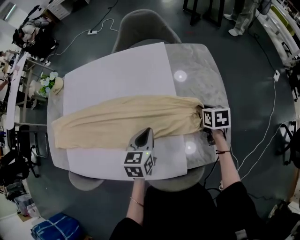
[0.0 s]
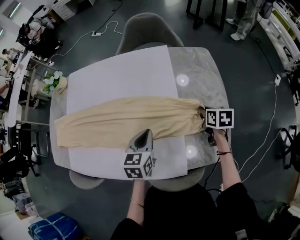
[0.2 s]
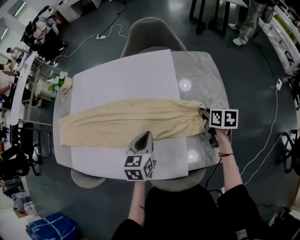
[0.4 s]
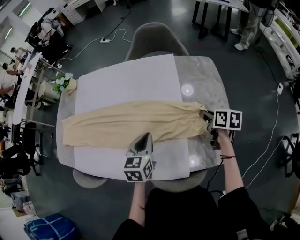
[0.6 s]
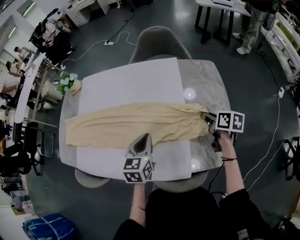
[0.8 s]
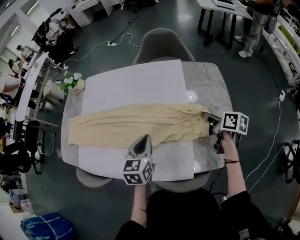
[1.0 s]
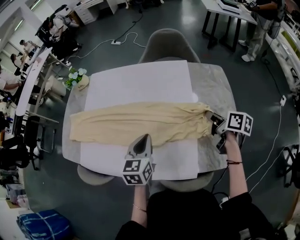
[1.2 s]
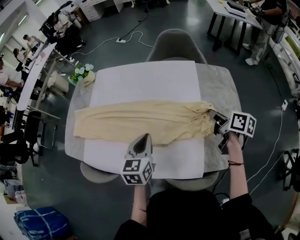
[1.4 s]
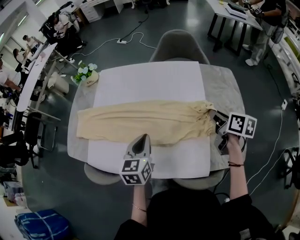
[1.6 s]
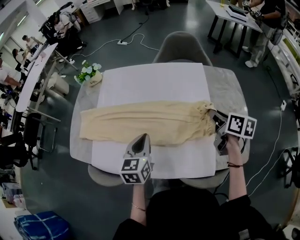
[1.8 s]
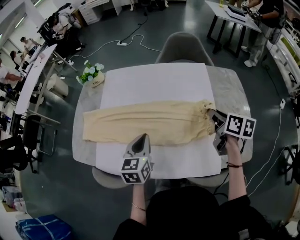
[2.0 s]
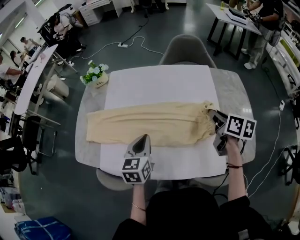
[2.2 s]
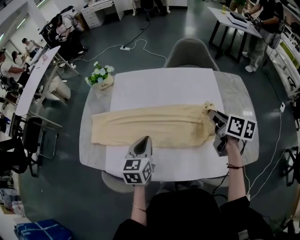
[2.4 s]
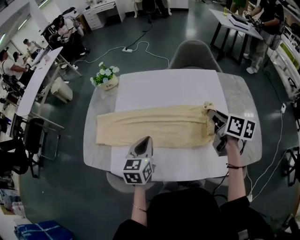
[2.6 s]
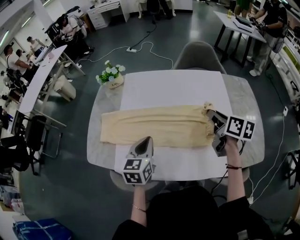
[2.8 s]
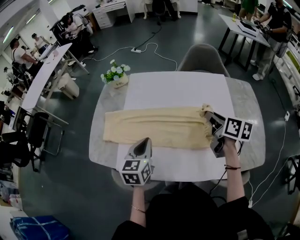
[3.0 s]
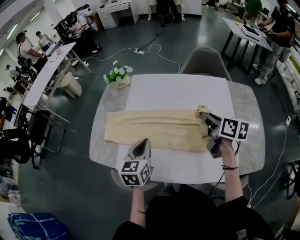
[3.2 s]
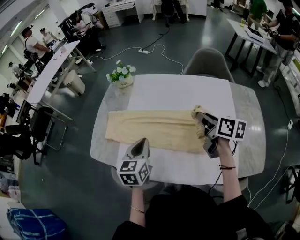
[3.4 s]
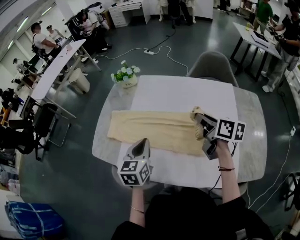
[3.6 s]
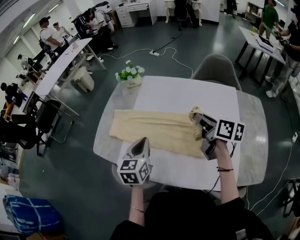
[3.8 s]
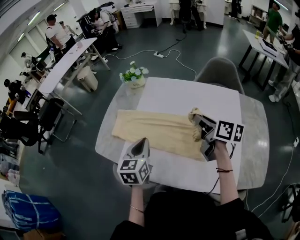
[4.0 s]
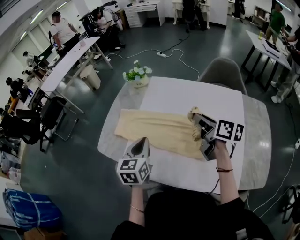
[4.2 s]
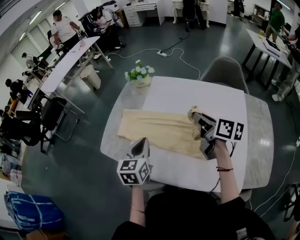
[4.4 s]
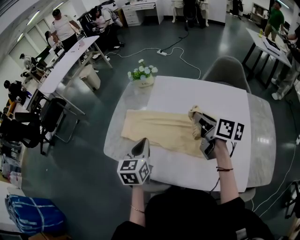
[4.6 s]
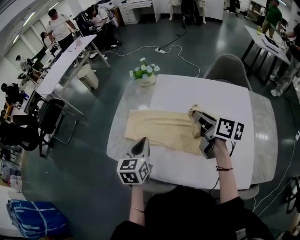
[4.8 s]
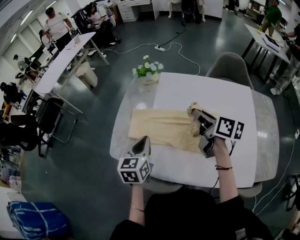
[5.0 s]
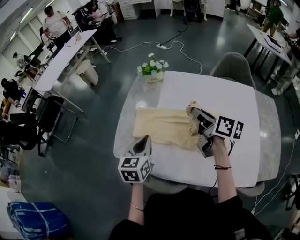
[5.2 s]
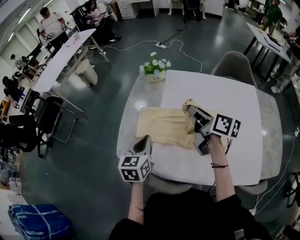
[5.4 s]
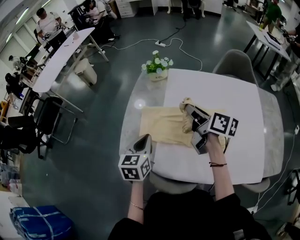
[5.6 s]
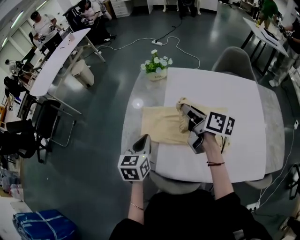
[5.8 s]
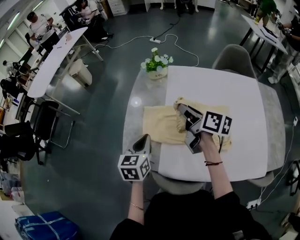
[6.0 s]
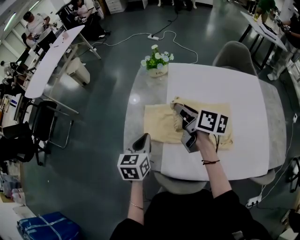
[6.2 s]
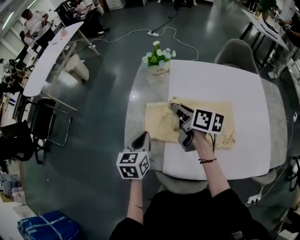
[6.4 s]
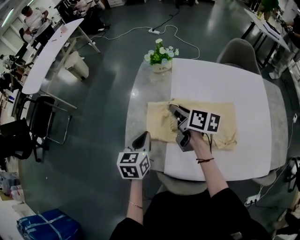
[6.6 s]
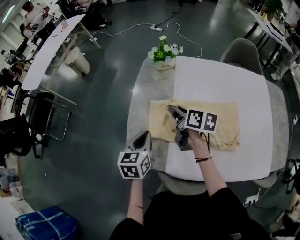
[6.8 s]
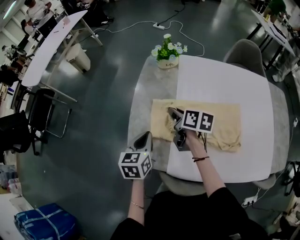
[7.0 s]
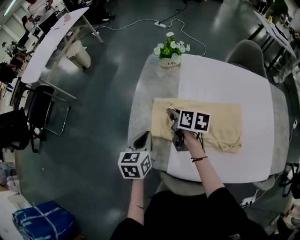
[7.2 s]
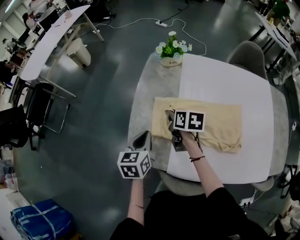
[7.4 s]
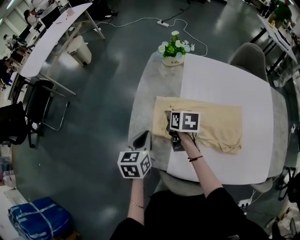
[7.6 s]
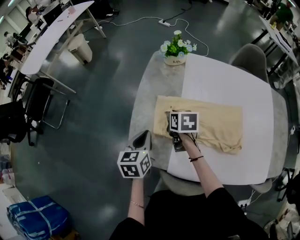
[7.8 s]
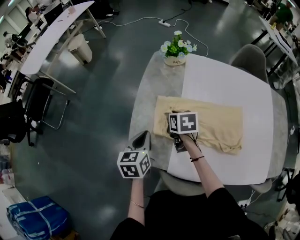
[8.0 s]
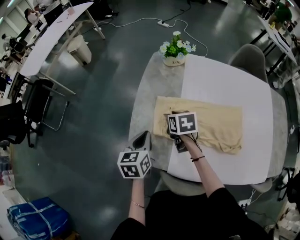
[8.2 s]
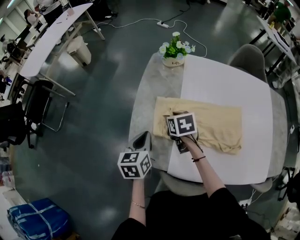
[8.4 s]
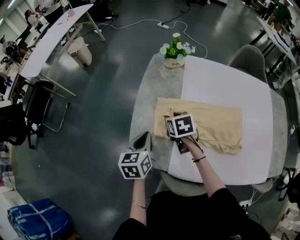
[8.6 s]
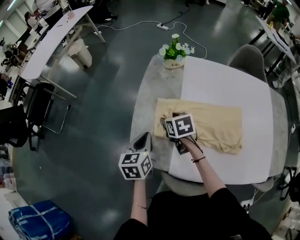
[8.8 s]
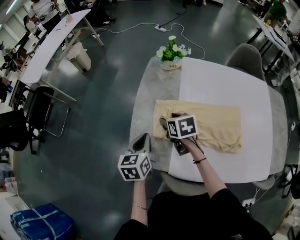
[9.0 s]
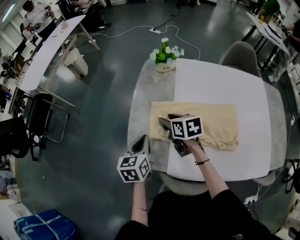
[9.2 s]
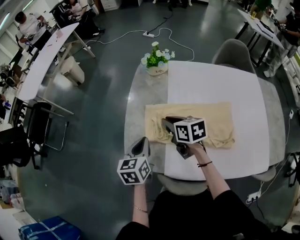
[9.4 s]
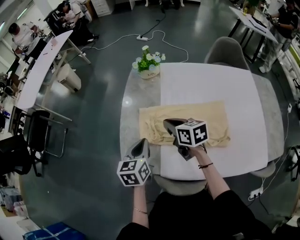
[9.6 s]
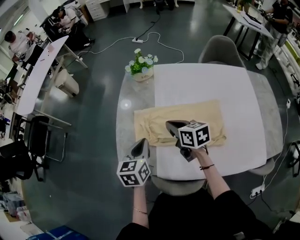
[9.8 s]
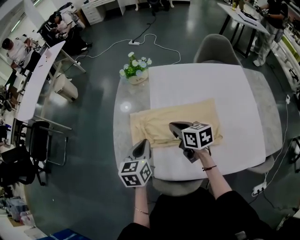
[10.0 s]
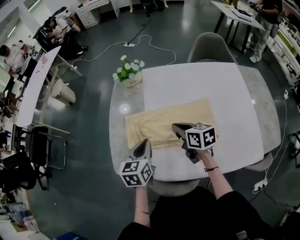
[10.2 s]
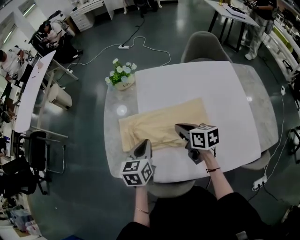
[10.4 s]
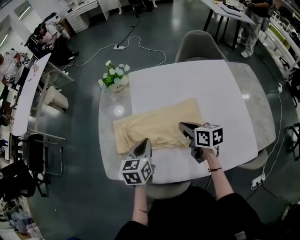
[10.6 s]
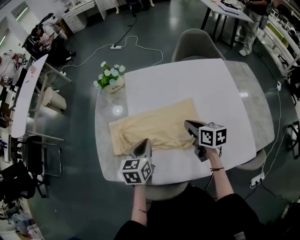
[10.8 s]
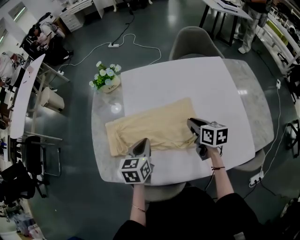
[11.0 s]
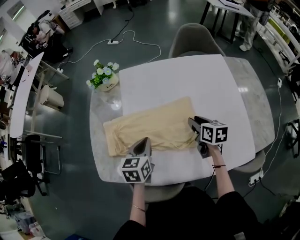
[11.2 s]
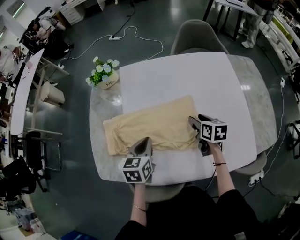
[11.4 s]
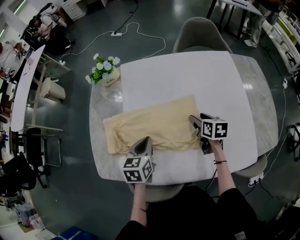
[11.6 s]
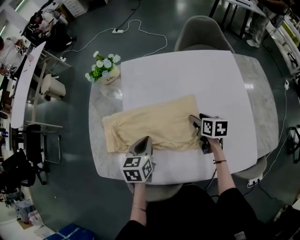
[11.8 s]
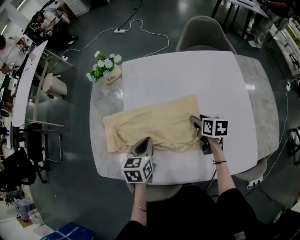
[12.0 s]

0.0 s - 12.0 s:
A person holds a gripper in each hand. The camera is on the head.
0.0 s - 1.6 s: The left gripper heads to the left and upward, covering about 20 cm. Meanwhile the right gripper heads upward and to the left, covering about 20 cm, and rotates some 30 degrees.
1.6 s - 3.0 s: The grippers both shift to the left by approximately 20 cm.
3.0 s - 4.4 s: The right gripper travels to the left and forward by some 15 cm. Meanwhile the left gripper moves to the left, approximately 5 cm.
4.4 s - 6.0 s: The grippers both shift to the left and forward by some 25 cm.
6.0 s - 7.6 s: The right gripper moves downward and to the left, about 20 cm, and points its fingers about 30 degrees further downward. Meanwhile the left gripper goes roughly 10 cm downward and to the left.
7.6 s - 9.0 s: The right gripper opens up.
9.0 s - 10.4 s: The right gripper shifts some 25 cm to the right and backward, turns by about 20 degrees, and closes its fingers. Meanwhile the left gripper heads to the right, covering approximately 20 cm.
10.4 s - 12.0 s: The left gripper moves to the right and downward, approximately 10 cm; the right gripper moves to the right and downward, approximately 20 cm, rotates some 20 degrees, and opens up.

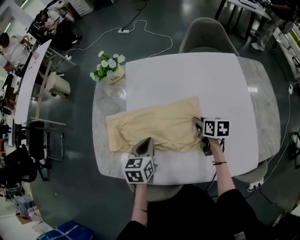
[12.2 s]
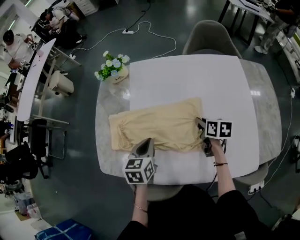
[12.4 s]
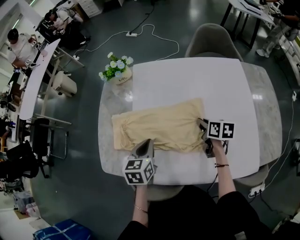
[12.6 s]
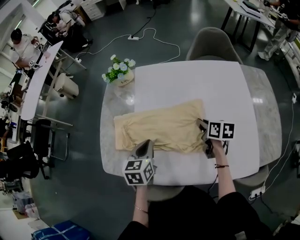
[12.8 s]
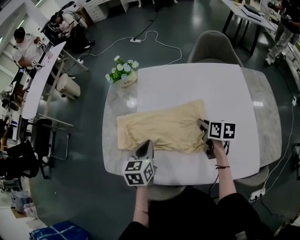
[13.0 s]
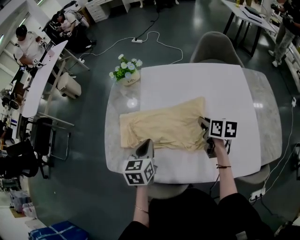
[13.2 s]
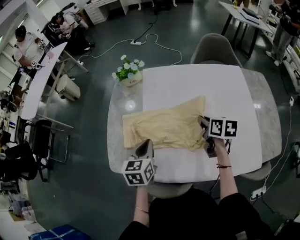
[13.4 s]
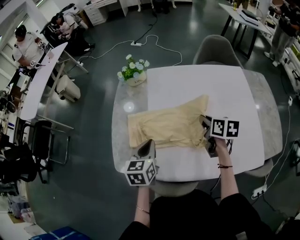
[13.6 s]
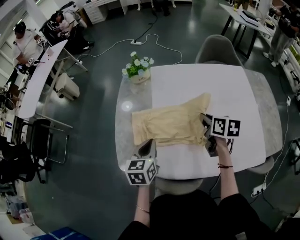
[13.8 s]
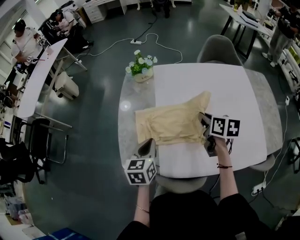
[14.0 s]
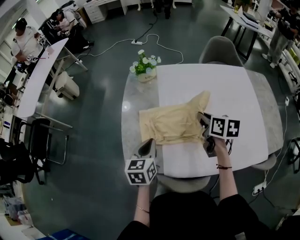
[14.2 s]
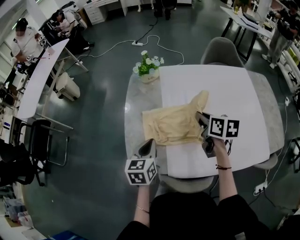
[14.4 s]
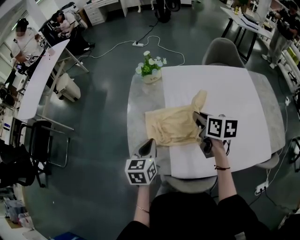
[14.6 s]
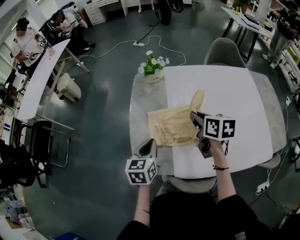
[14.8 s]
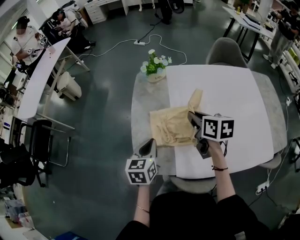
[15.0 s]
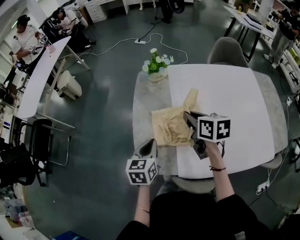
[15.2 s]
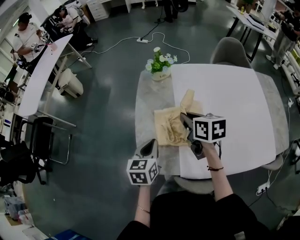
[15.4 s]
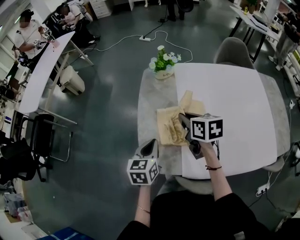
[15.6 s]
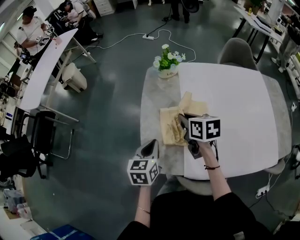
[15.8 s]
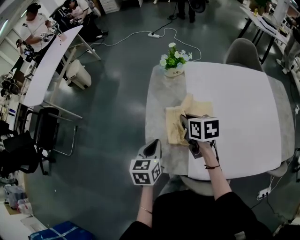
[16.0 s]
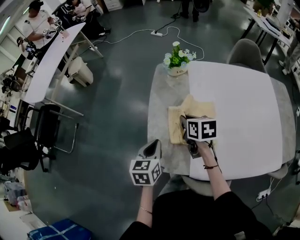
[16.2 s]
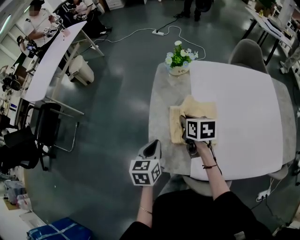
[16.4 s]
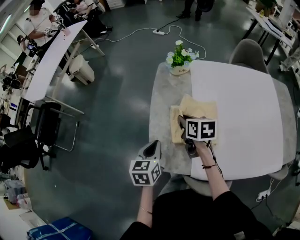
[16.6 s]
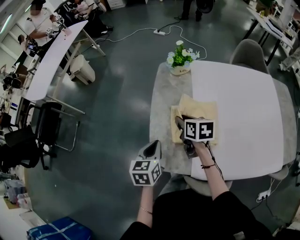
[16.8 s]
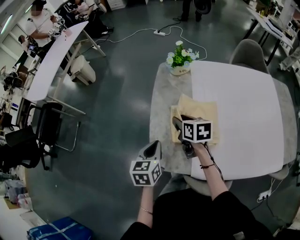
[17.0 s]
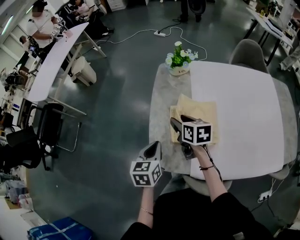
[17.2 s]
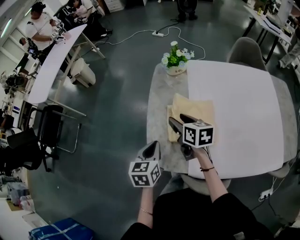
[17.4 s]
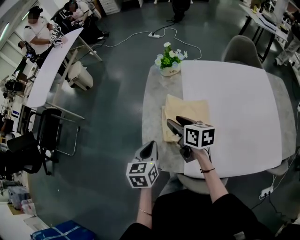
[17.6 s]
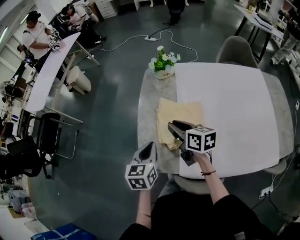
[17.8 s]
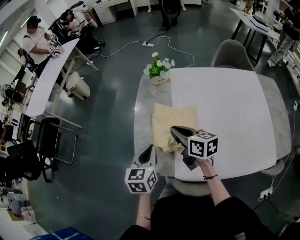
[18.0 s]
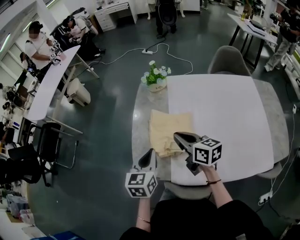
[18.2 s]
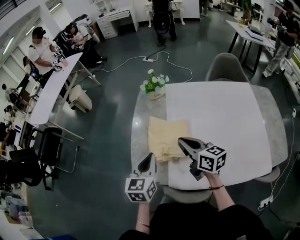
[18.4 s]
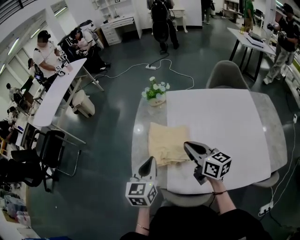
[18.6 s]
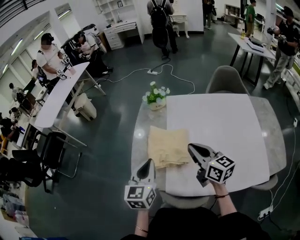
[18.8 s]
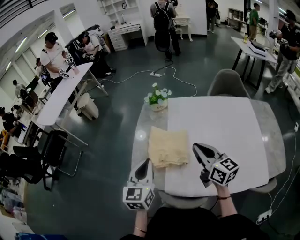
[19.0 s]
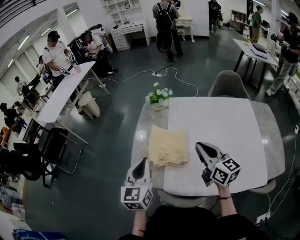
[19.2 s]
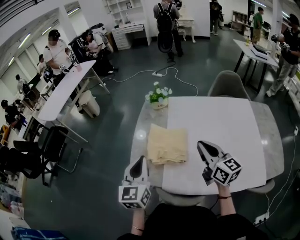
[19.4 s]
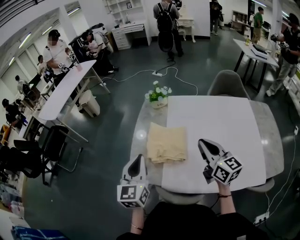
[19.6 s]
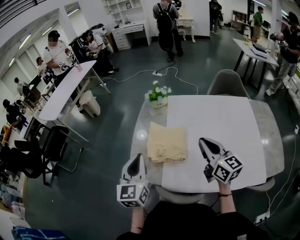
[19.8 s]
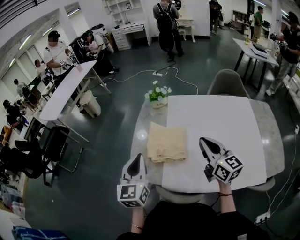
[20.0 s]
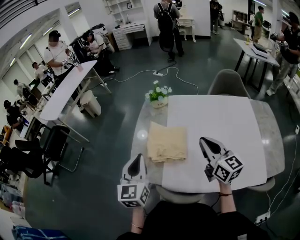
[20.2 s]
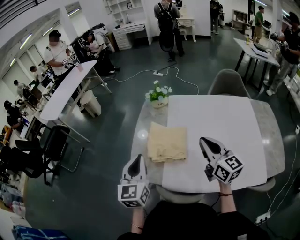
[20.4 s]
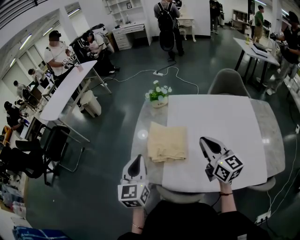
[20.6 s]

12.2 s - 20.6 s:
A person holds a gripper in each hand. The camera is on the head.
12.2 s - 13.6 s: The right gripper travels upward and to the left by roughly 15 cm; the left gripper is displaced to the left and upward by roughly 10 cm.
13.6 s - 15.0 s: The two grippers go roughly 20 cm to the left.
15.0 s - 16.4 s: The left gripper heads to the left, covering roughly 5 cm. The right gripper heads to the left and downward, covering some 15 cm.
16.4 s - 17.8 s: The left gripper changes place by roughly 5 cm. Meanwhile the right gripper goes some 5 cm upward, and turns by some 20 degrees.
17.8 s - 19.2 s: The left gripper shifts some 15 cm upward and backward, and turns by roughly 20 degrees. The right gripper goes about 25 cm to the right, upward and backward, turns by about 30 degrees, and closes up.
19.2 s - 20.6 s: The grippers move only a little.

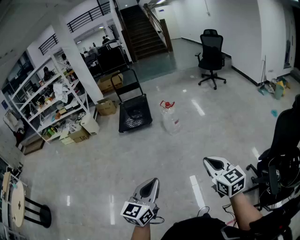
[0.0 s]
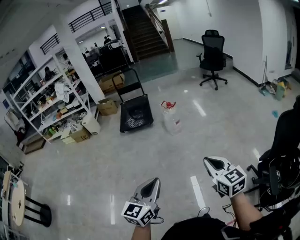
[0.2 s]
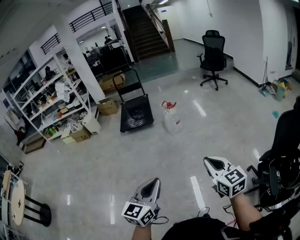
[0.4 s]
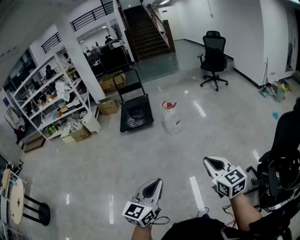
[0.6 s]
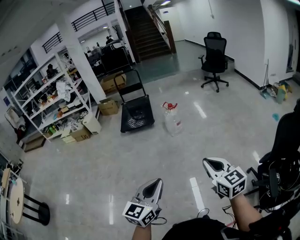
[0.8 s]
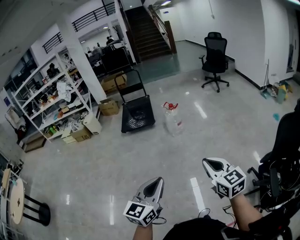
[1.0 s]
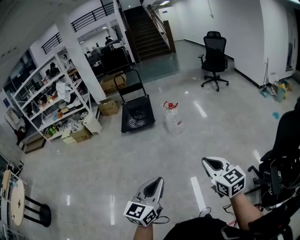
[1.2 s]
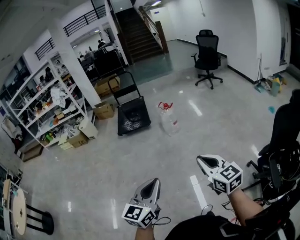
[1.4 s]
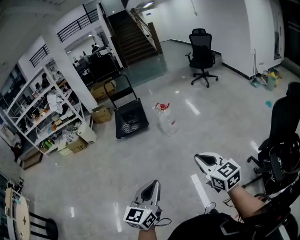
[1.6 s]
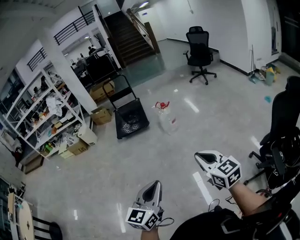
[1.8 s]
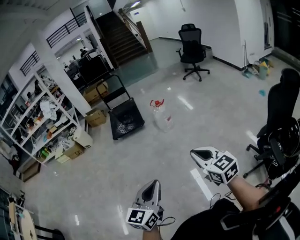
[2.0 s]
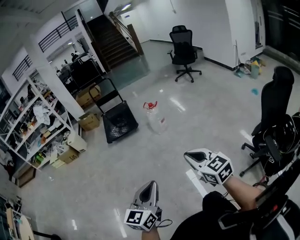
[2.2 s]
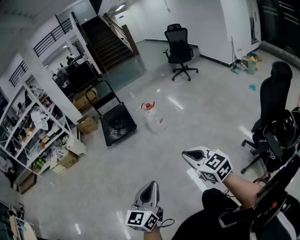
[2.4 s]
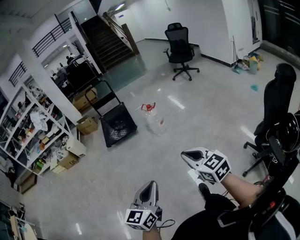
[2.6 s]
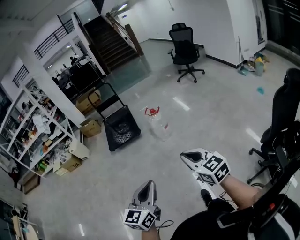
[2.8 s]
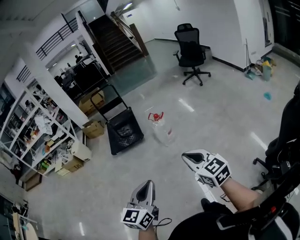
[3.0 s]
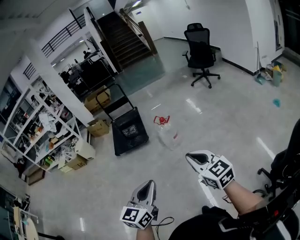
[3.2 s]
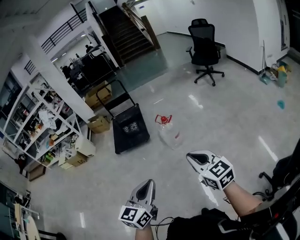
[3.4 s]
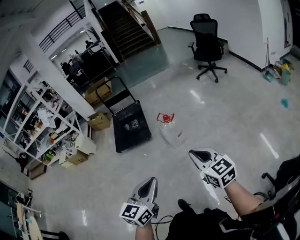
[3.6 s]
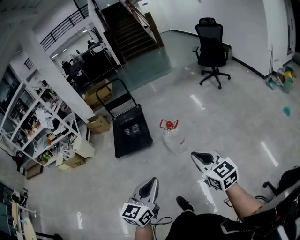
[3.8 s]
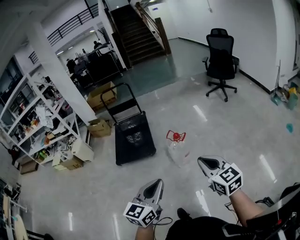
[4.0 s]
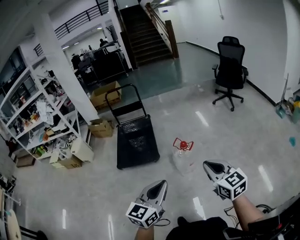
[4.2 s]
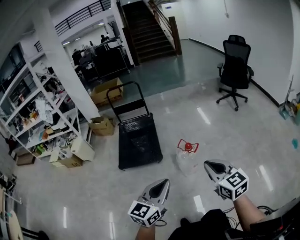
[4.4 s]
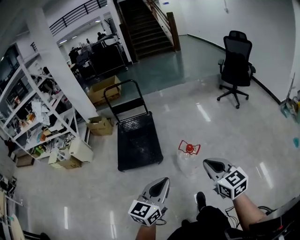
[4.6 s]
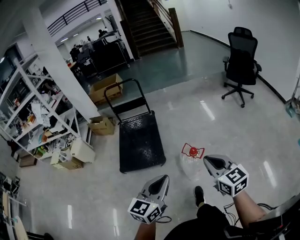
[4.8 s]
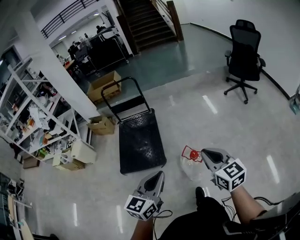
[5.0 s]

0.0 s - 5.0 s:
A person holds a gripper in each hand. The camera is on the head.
0.0 s - 1.6 s: The right gripper is displaced to the left by approximately 5 cm.
1.6 s - 3.4 s: The grippers both shift forward by about 35 cm.
3.4 s - 5.0 s: The pair of grippers is taken forward, about 60 cm.
